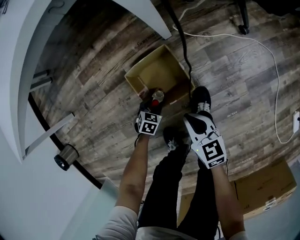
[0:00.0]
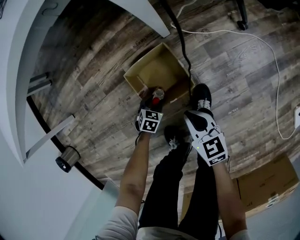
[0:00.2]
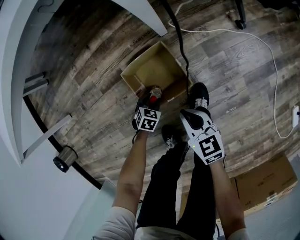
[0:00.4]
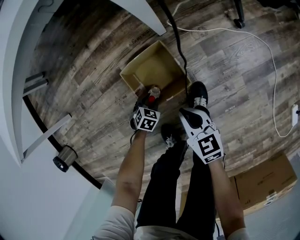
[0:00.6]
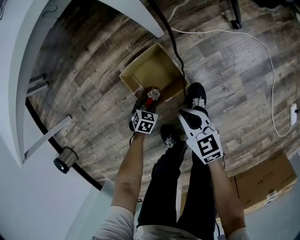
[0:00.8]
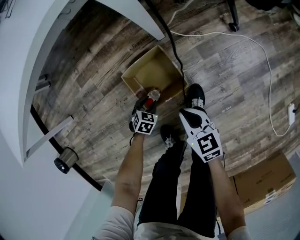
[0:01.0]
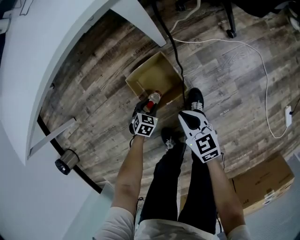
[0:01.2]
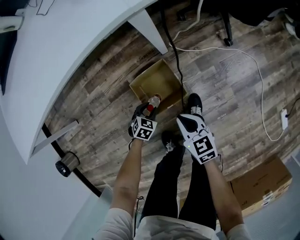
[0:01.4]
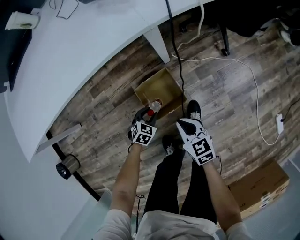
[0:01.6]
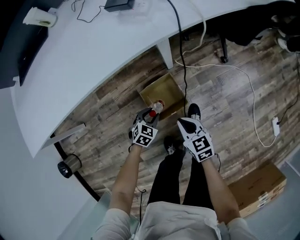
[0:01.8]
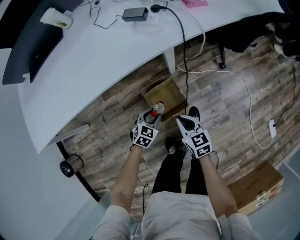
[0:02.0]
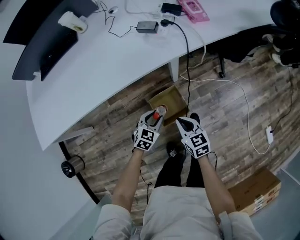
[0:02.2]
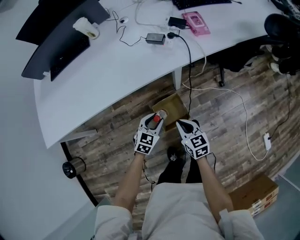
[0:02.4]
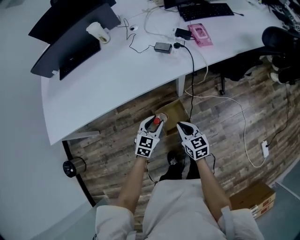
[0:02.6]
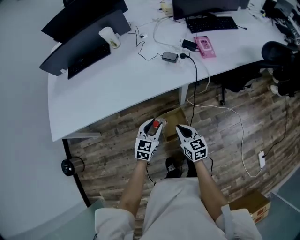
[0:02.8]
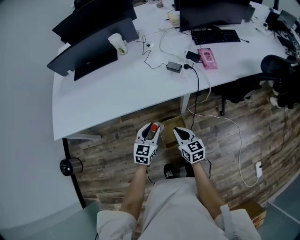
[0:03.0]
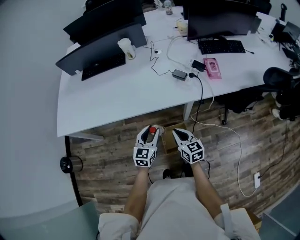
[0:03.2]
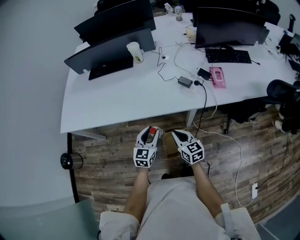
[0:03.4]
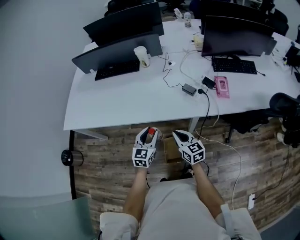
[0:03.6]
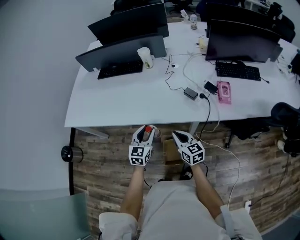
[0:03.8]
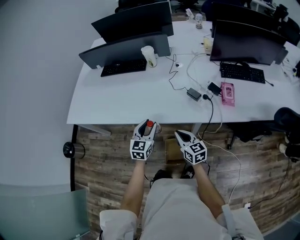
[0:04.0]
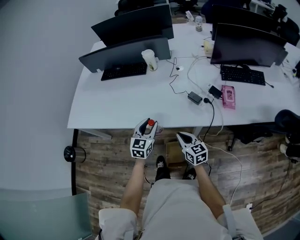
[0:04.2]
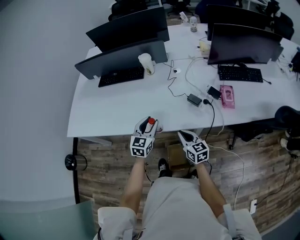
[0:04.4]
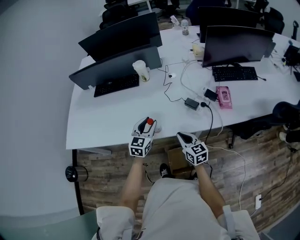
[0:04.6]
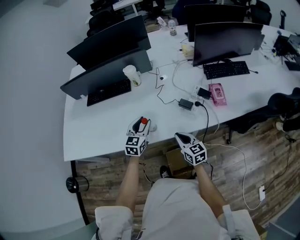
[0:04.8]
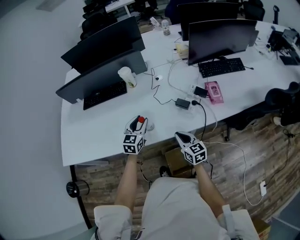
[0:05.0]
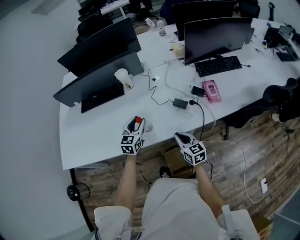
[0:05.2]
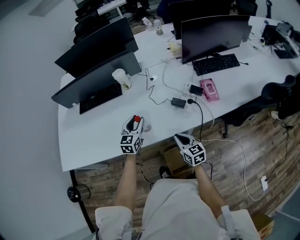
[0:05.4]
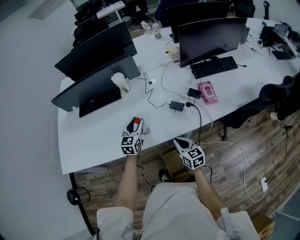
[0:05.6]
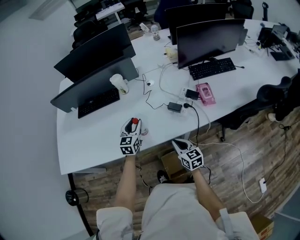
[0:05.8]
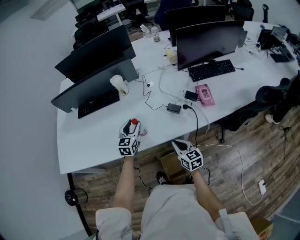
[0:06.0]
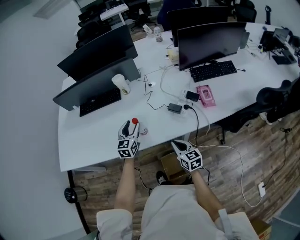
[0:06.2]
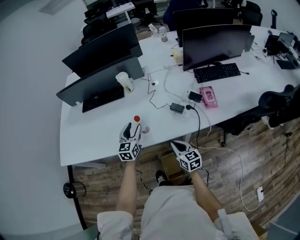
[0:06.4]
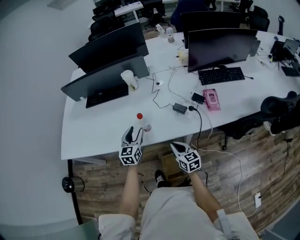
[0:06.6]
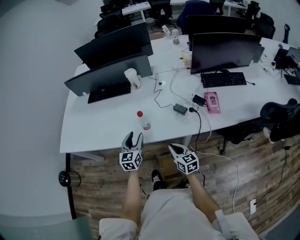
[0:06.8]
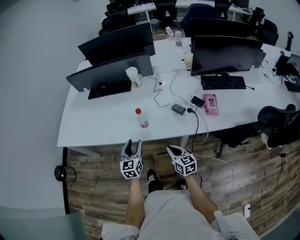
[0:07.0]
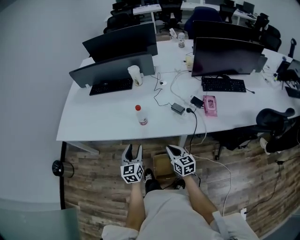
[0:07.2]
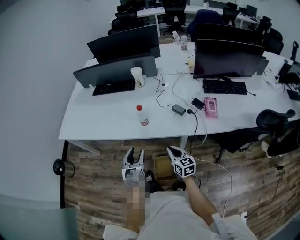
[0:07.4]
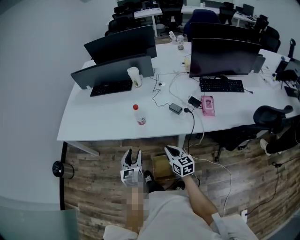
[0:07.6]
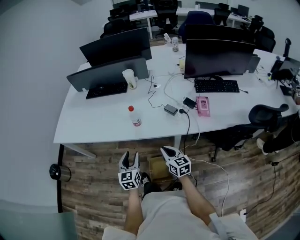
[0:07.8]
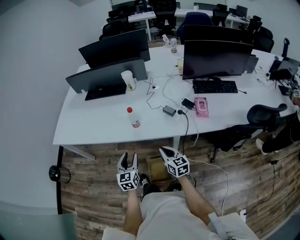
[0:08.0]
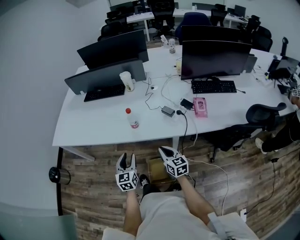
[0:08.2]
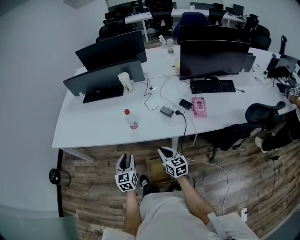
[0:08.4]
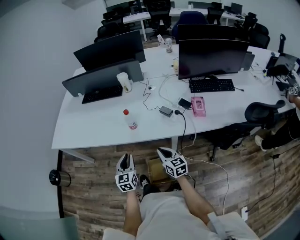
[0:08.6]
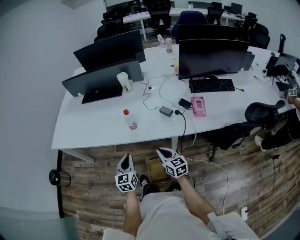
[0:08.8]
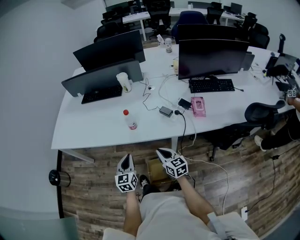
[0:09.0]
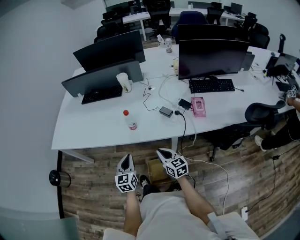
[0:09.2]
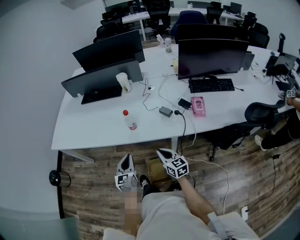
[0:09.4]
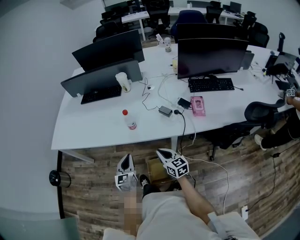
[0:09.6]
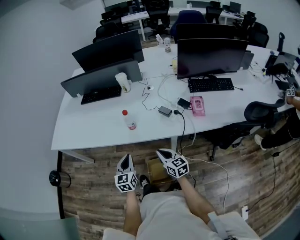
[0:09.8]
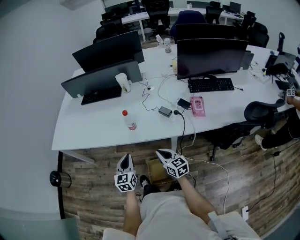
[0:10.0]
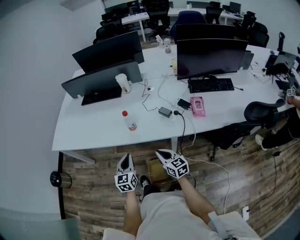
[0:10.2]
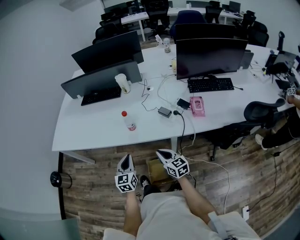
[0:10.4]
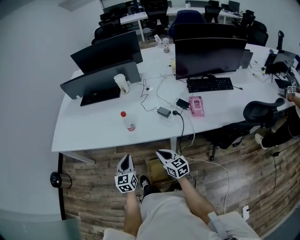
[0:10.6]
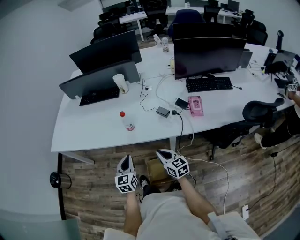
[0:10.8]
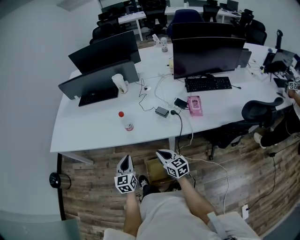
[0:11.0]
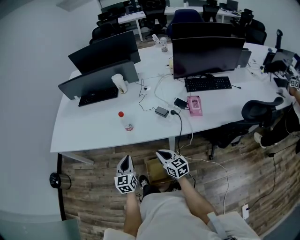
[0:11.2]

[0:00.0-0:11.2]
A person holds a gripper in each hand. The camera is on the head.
0:00.0 to 0:01.6: Both grippers travel together upward, roughly 20 cm.
0:01.6 to 0:03.2: The grippers both shift upward by some 40 cm. The left gripper points its fingers about 40 degrees further upward.
0:03.2 to 0:04.8: Both grippers move forward, about 20 cm.
0:04.8 to 0:06.4: There are only small adjustments of the grippers.
0:06.4 to 0:08.0: The left gripper heads backward, covering some 25 cm, and rotates about 20 degrees; the right gripper travels backward by about 10 cm.
0:08.0 to 0:09.6: The left gripper closes its fingers.
0:09.6 to 0:11.2: There are only small adjustments of the grippers.

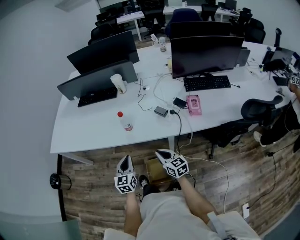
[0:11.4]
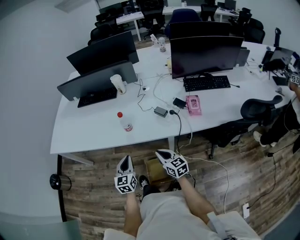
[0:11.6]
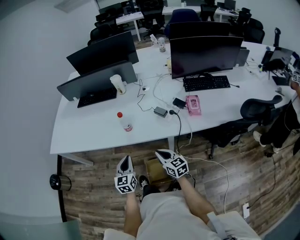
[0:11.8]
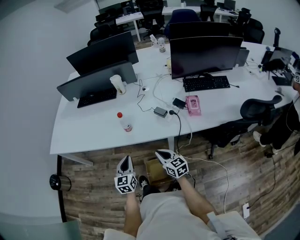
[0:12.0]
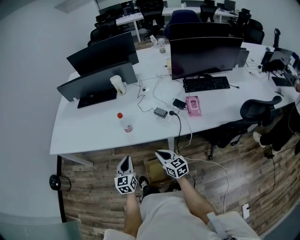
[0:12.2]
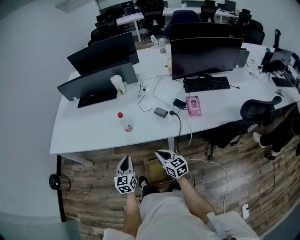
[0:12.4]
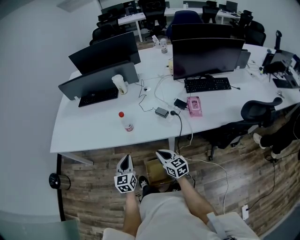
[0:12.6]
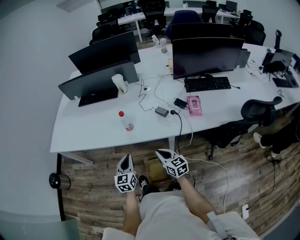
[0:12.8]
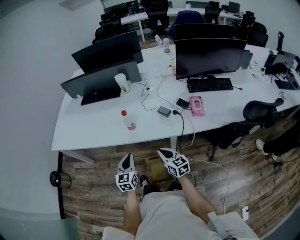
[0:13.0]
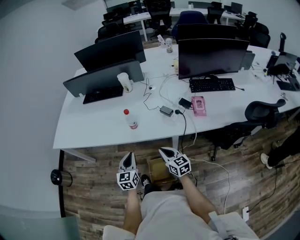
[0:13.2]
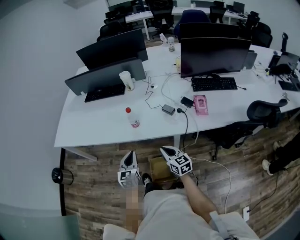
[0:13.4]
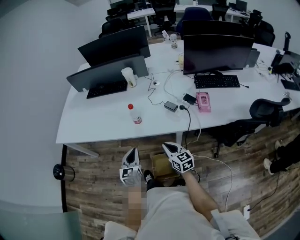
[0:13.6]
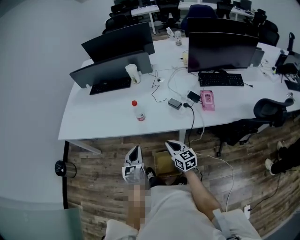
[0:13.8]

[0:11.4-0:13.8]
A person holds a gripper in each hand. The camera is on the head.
0:11.4 to 0:12.6: Neither gripper changes place.
0:12.6 to 0:13.8: The grippers make only small movements.

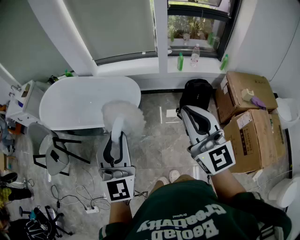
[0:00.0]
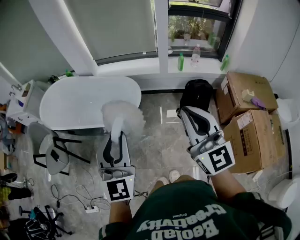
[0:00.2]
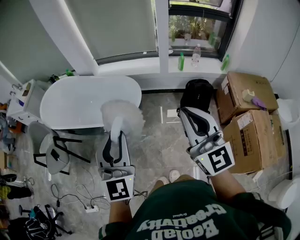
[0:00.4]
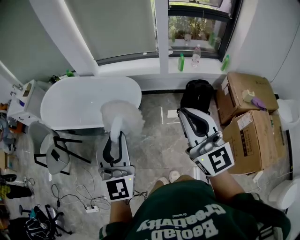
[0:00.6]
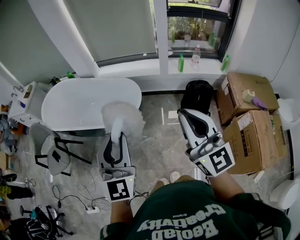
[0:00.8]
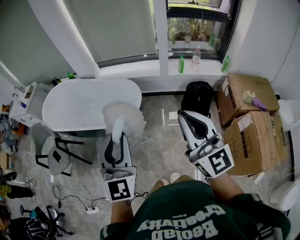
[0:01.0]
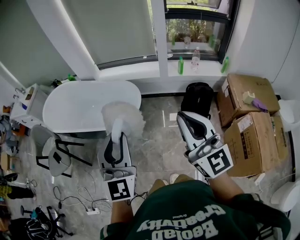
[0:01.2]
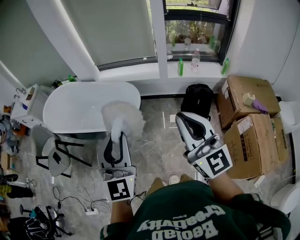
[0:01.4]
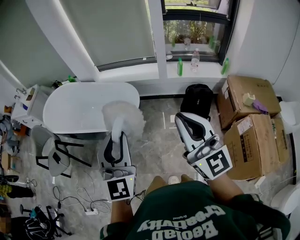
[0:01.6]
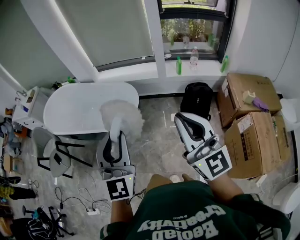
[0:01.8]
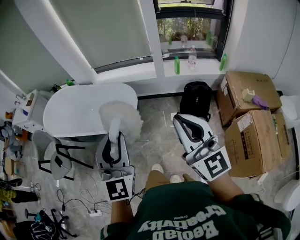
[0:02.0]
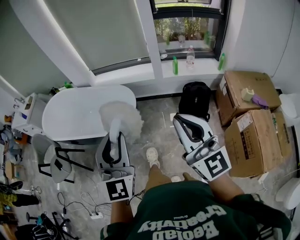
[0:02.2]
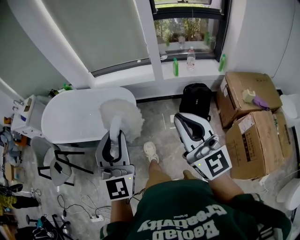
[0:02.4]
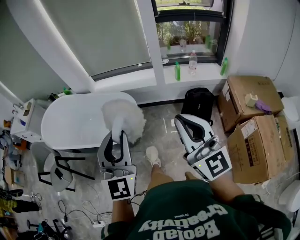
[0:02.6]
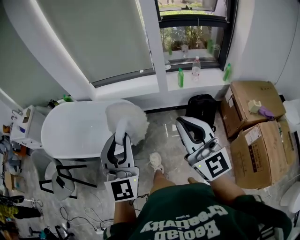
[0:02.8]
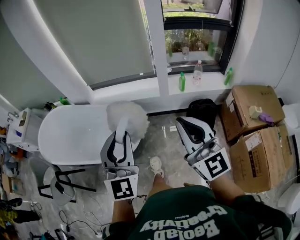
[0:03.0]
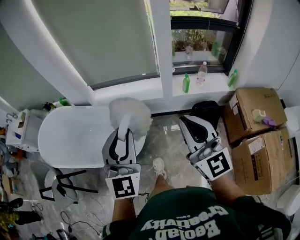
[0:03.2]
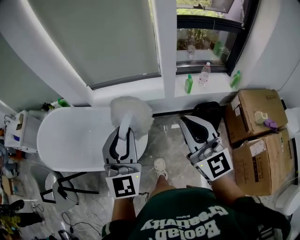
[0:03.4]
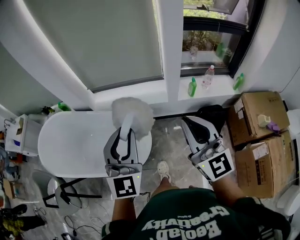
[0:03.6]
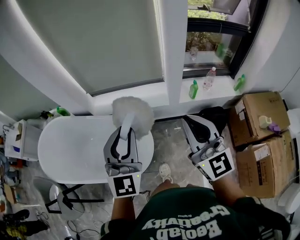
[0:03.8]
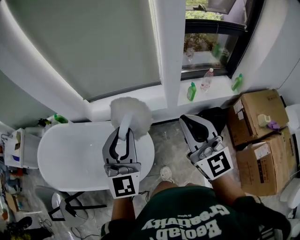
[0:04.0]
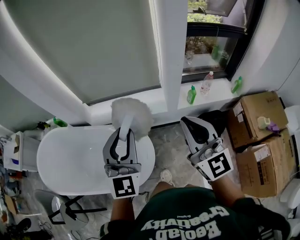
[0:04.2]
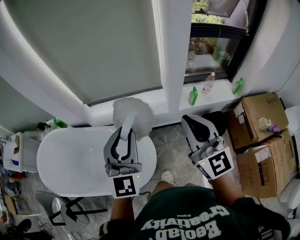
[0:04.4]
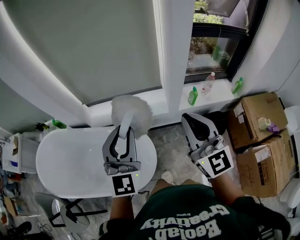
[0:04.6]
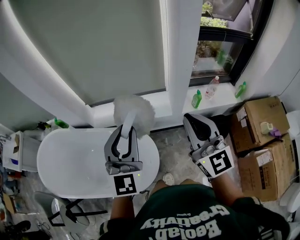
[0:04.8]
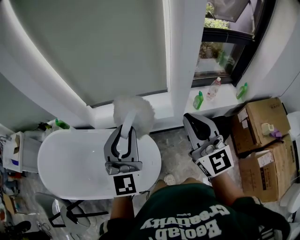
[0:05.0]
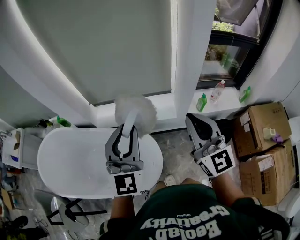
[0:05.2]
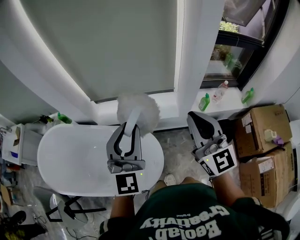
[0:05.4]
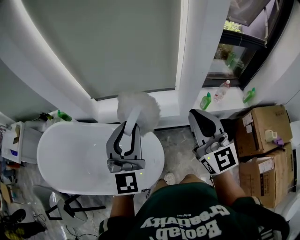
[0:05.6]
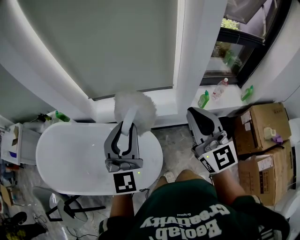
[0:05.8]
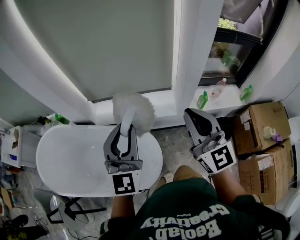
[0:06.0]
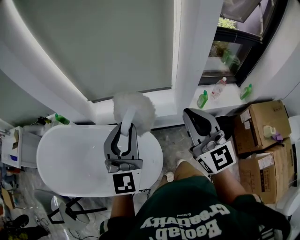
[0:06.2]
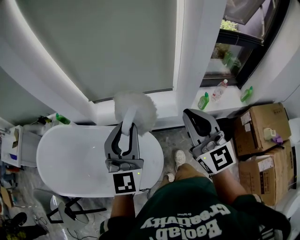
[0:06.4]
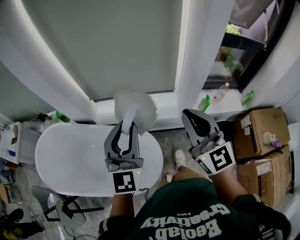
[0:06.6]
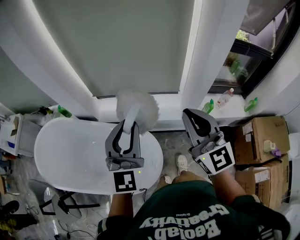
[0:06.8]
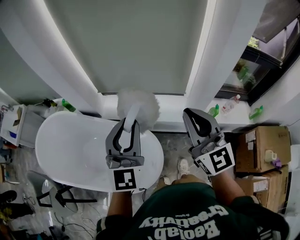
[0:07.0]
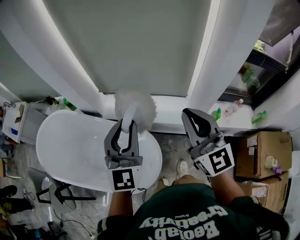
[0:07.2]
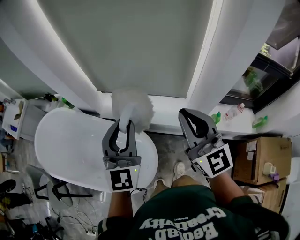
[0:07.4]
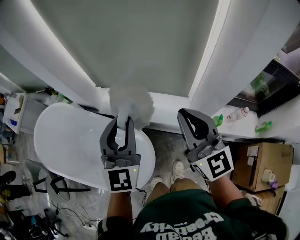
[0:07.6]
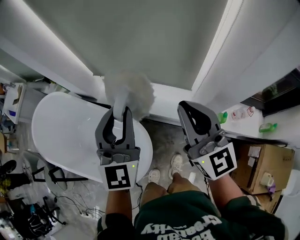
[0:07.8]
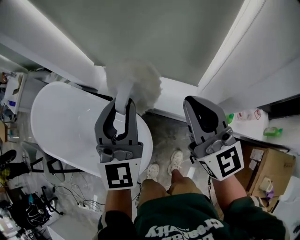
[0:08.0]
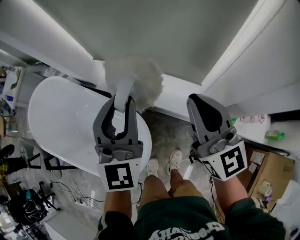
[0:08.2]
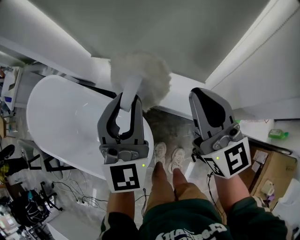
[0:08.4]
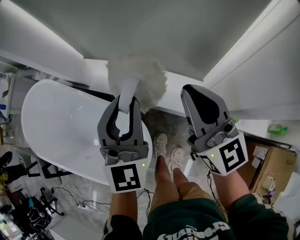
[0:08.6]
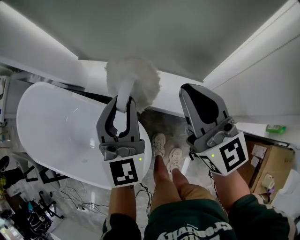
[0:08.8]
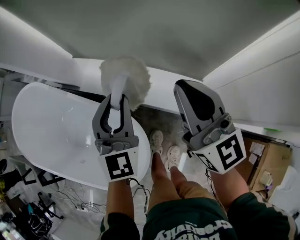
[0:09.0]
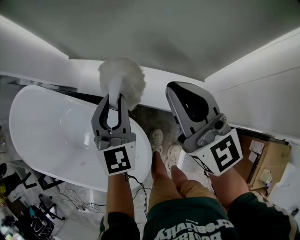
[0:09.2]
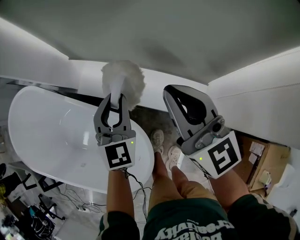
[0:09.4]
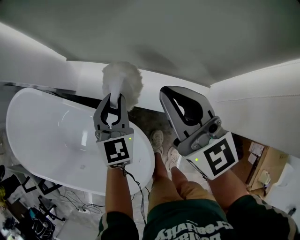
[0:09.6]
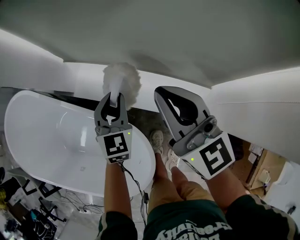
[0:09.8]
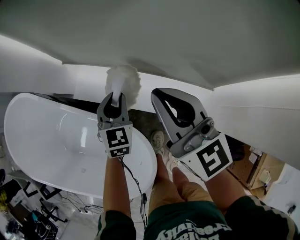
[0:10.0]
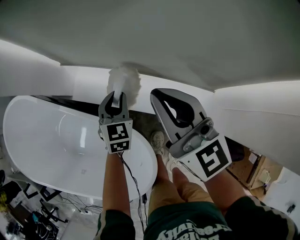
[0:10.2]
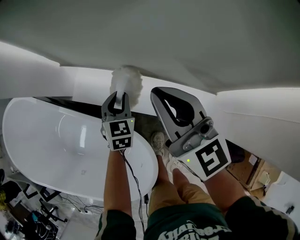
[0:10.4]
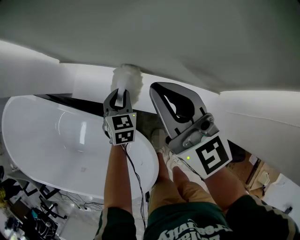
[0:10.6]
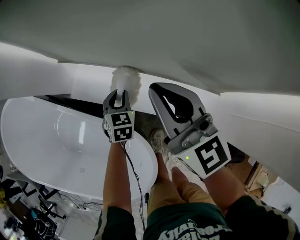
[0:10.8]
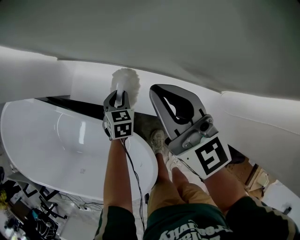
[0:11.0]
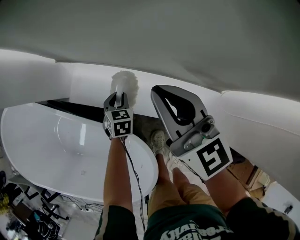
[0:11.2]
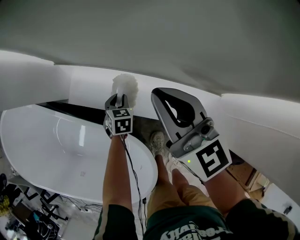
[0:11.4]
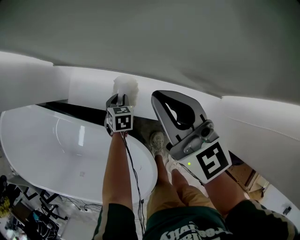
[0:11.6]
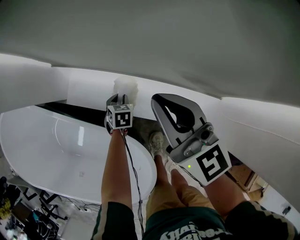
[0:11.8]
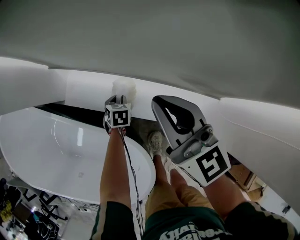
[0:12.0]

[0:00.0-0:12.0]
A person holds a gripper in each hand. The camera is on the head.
0:00.0 to 0:01.6: The left gripper travels to the right by about 5 cm.
0:01.6 to 0:03.0: Both grippers travel together forward, approximately 20 cm.
0:03.0 to 0:04.4: Both grippers travel together forward, some 25 cm.
0:04.4 to 0:06.0: The two grippers go about 5 cm forward.
0:06.0 to 0:07.6: Both grippers move forward, roughly 15 cm.
0:07.6 to 0:09.0: The left gripper heads downward and forward, covering some 25 cm. The right gripper heads forward and downward, covering about 20 cm.
0:09.0 to 0:10.4: The left gripper moves downward and forward, about 25 cm, and rotates approximately 30 degrees, while the right gripper is displaced forward, downward and to the left by about 15 cm.
0:10.4 to 0:12.0: The right gripper moves downward, approximately 5 cm. The left gripper is displaced downward by some 20 cm, and swivels roughly 30 degrees.
